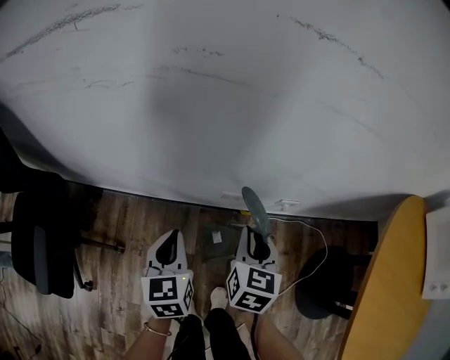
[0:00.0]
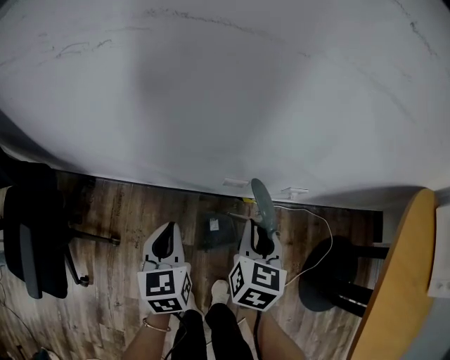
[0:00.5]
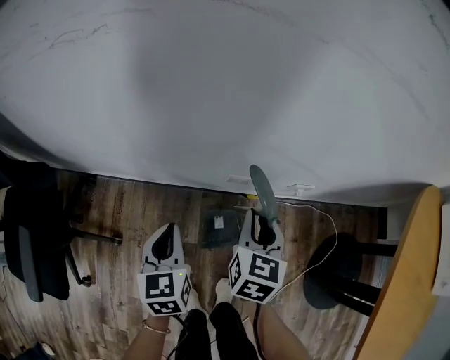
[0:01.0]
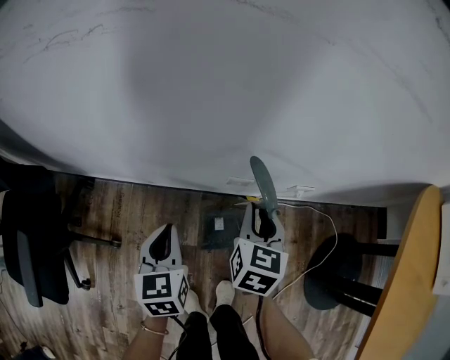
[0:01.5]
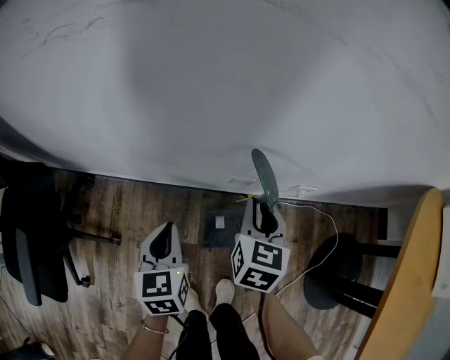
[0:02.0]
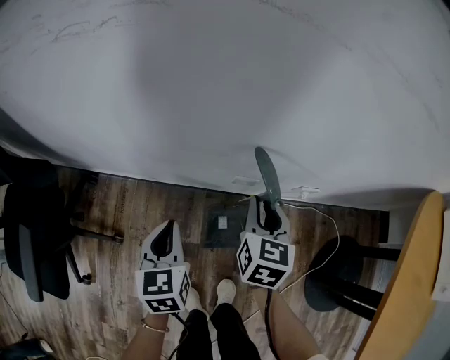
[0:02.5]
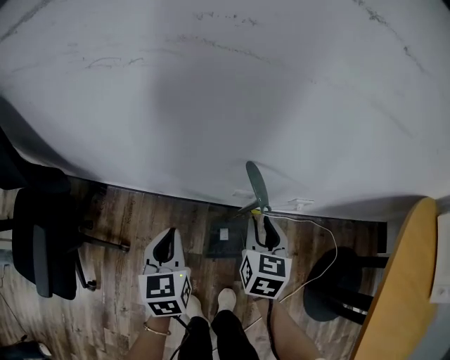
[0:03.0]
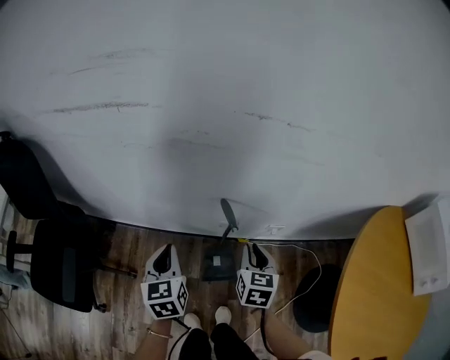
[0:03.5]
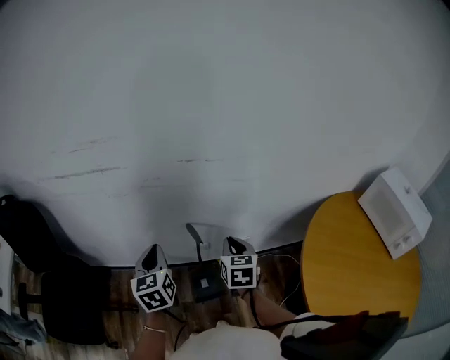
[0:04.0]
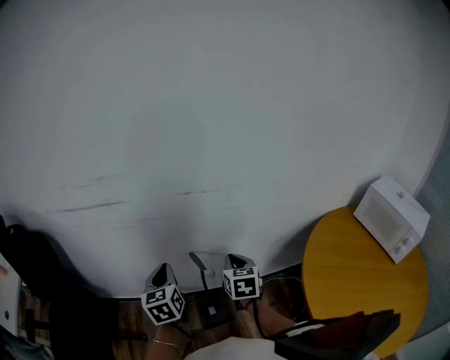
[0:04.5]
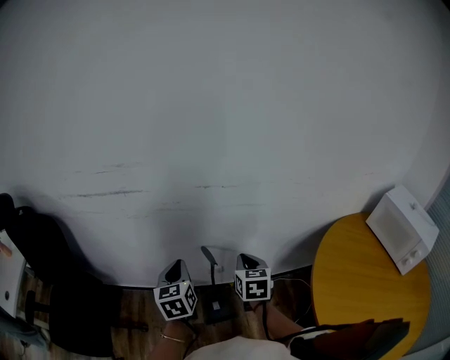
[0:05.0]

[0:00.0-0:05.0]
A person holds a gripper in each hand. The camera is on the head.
0:00.0 to 0:02.5: The left gripper goes approximately 10 cm downward. The right gripper is displaced downward and forward by some 10 cm.
0:02.5 to 0:05.0: The two grippers go about 35 cm upward.

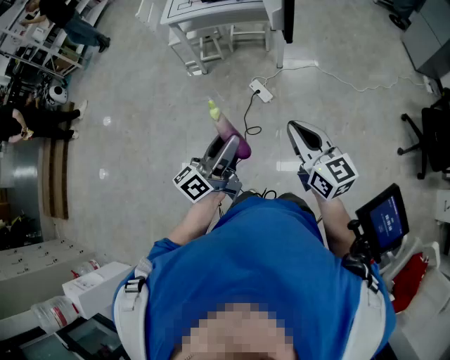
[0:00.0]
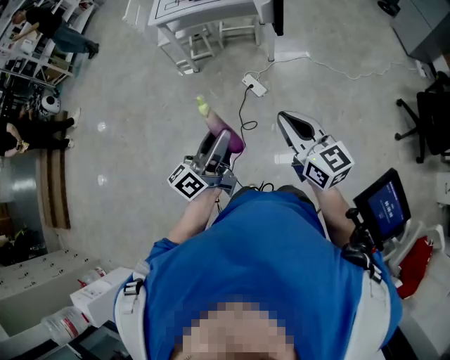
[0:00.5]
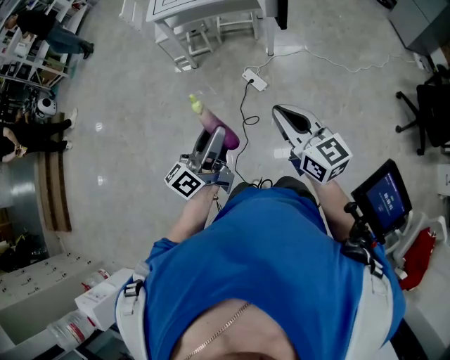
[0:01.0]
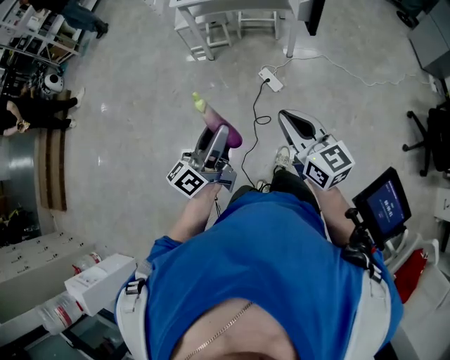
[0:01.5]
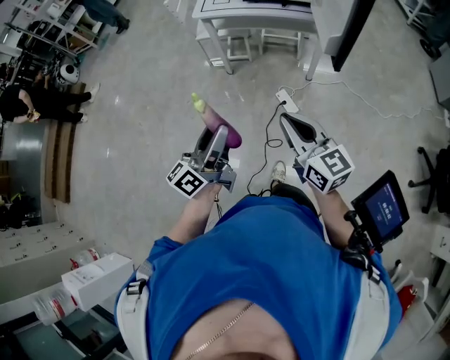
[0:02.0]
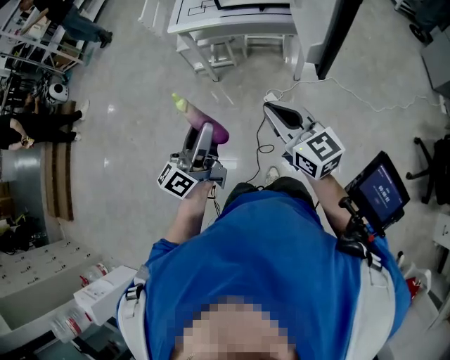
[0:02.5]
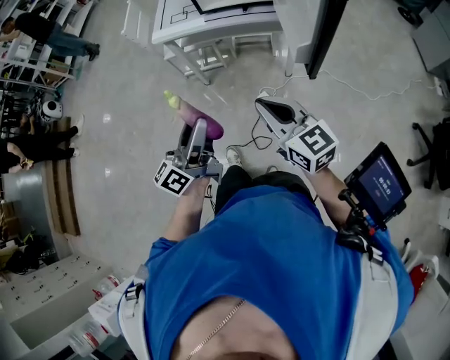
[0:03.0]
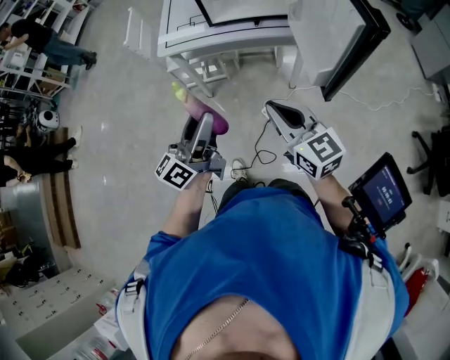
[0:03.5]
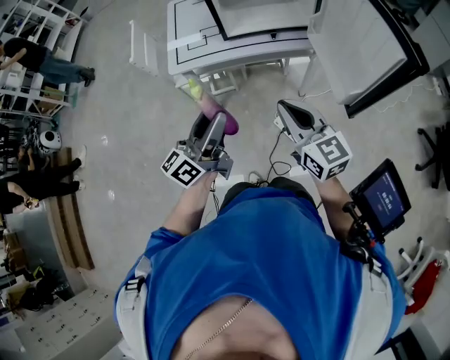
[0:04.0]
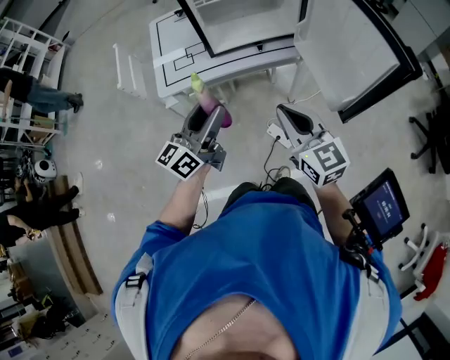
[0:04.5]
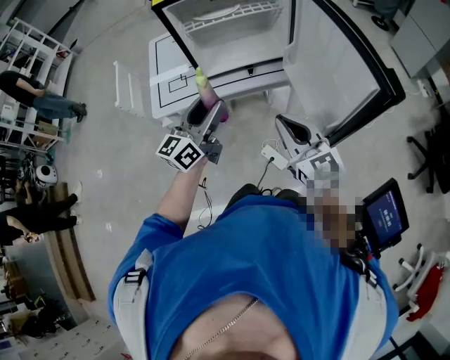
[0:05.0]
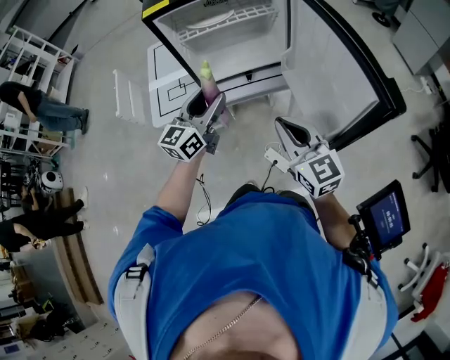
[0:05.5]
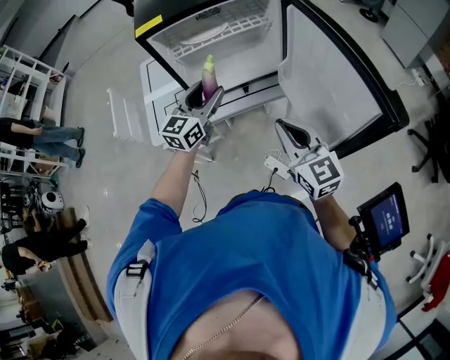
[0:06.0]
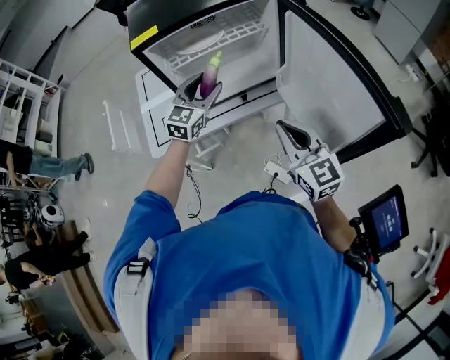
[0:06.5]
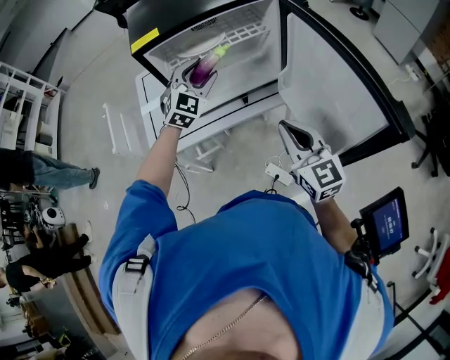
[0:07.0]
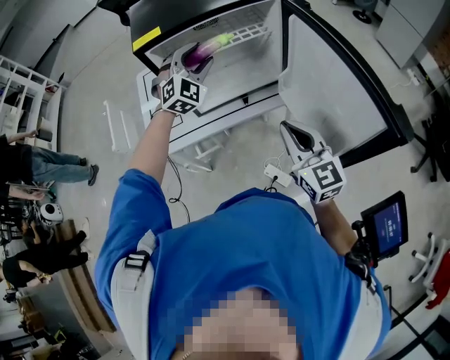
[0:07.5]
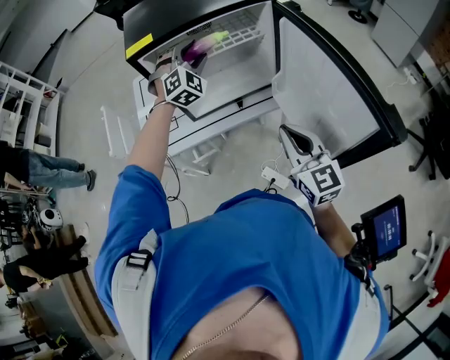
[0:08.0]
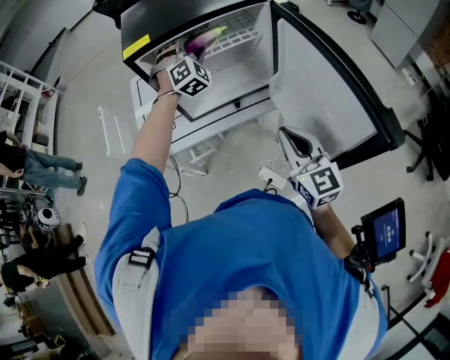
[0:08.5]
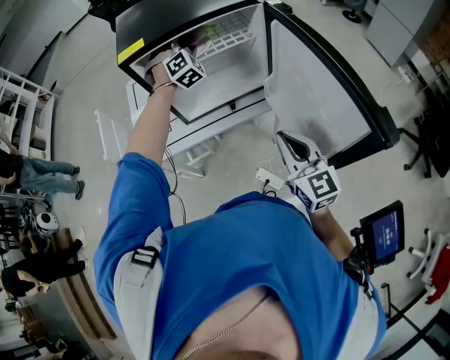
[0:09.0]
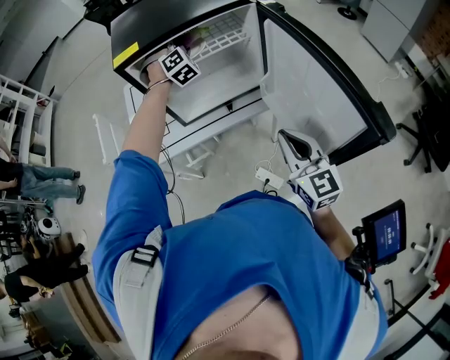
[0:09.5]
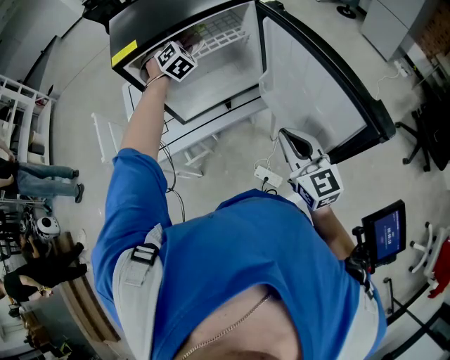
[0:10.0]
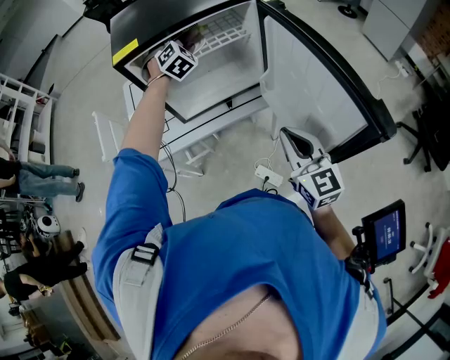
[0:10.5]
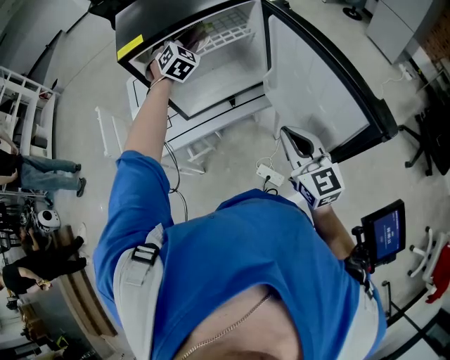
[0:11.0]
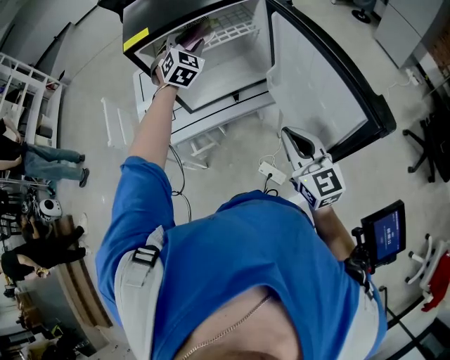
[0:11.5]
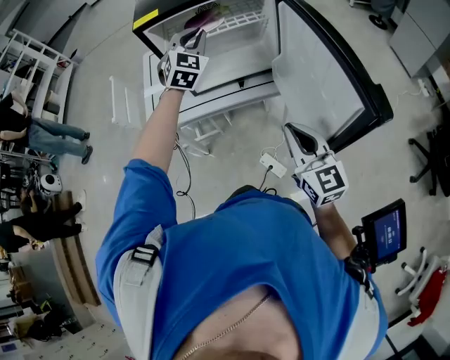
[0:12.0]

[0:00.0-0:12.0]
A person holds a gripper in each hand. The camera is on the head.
0:00.0 to 0:02.0: The grippers both shift forward and to the left by about 20 cm.
0:02.0 to 0:04.0: The grippers both shift forward by some 35 cm.
0:04.0 to 0:06.0: The left gripper shifts roughly 30 cm forward, and changes its angle by some 40 degrees. Meanwhile the right gripper heads forward and to the right, covering some 15 cm.
0:06.0 to 0:08.0: The left gripper heads forward, covering roughly 15 cm, and twists some 70 degrees clockwise, seen from behind.
0:08.0 to 0:10.0: The left gripper goes about 10 cm forward.
0:10.0 to 0:12.0: The left gripper is displaced backward by roughly 15 cm, swivels roughly 30 degrees, and closes its fingers; the right gripper goes some 5 cm backward.

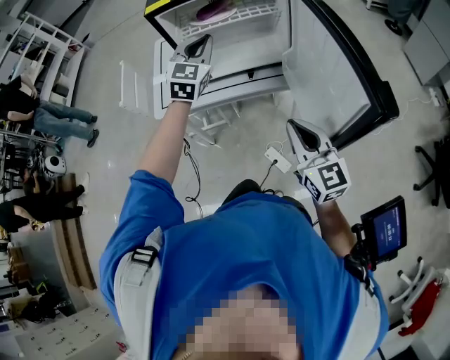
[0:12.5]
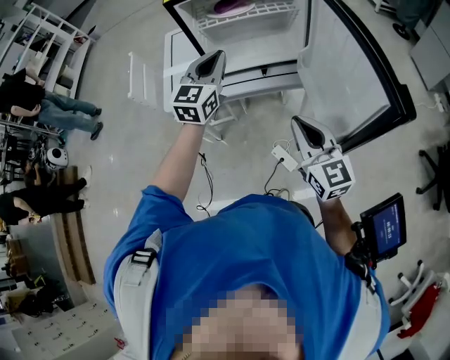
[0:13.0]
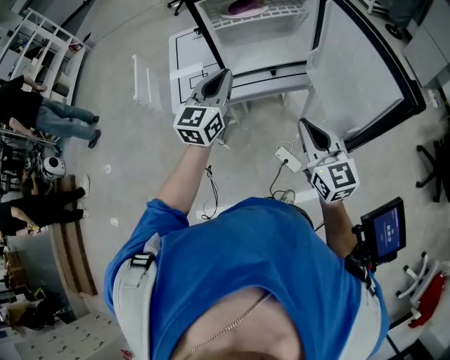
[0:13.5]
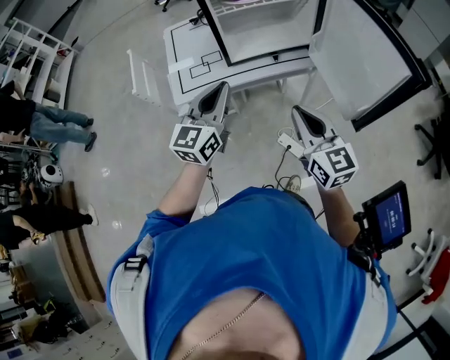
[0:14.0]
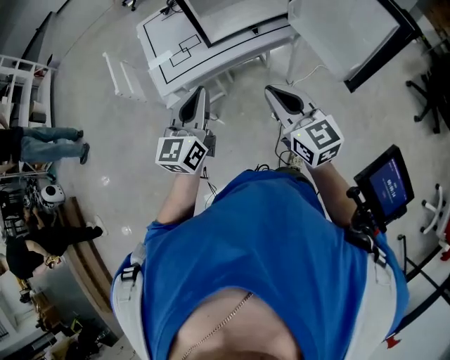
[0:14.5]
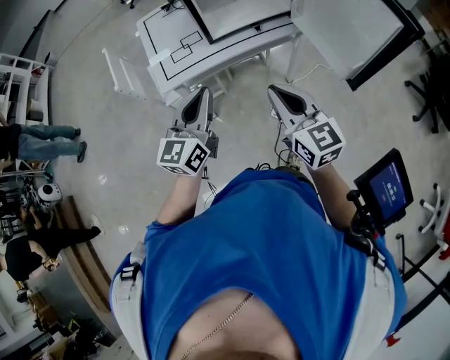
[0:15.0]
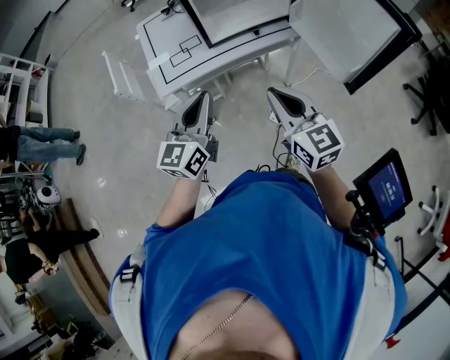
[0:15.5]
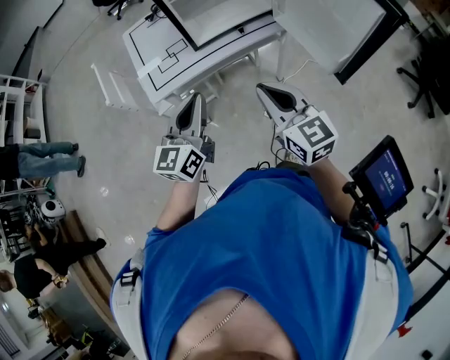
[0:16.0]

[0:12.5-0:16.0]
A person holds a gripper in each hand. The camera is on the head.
0:12.5 to 0:14.5: The right gripper travels to the left by approximately 20 cm. Meanwhile the left gripper heads backward and to the left, covering some 30 cm, and rotates roughly 40 degrees.
0:14.5 to 0:16.0: The grippers move only a little.

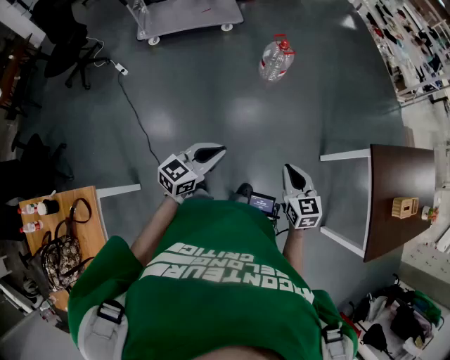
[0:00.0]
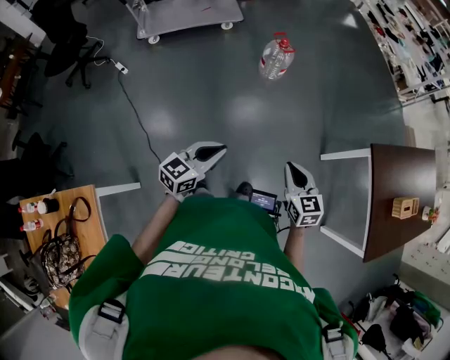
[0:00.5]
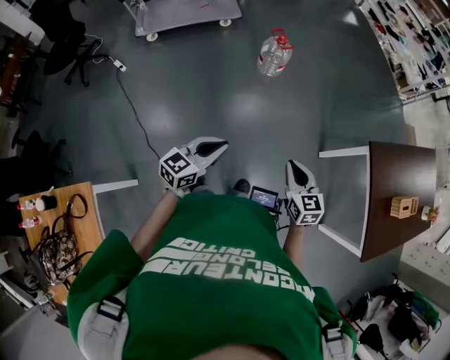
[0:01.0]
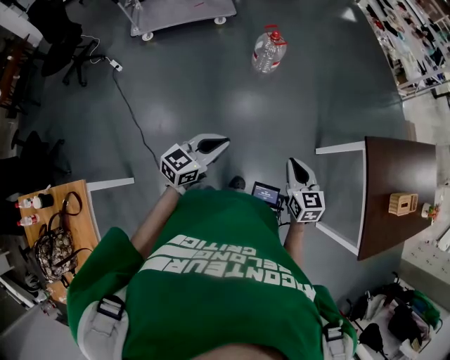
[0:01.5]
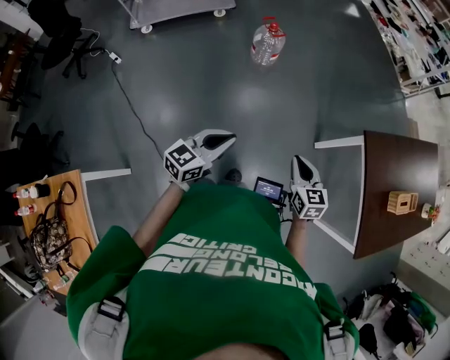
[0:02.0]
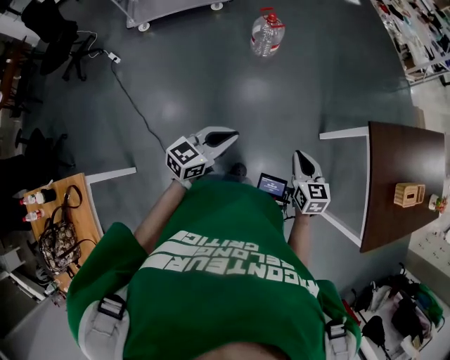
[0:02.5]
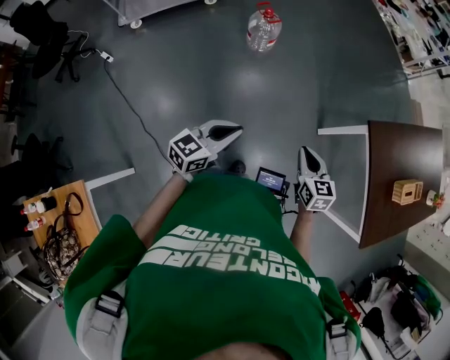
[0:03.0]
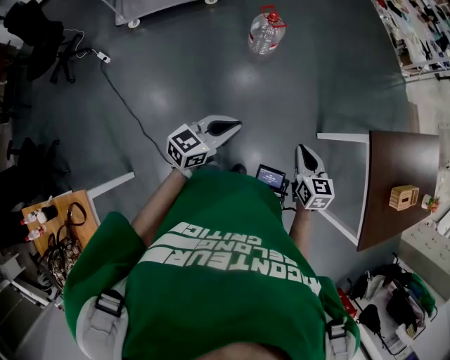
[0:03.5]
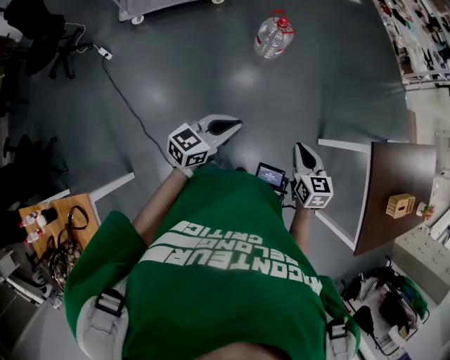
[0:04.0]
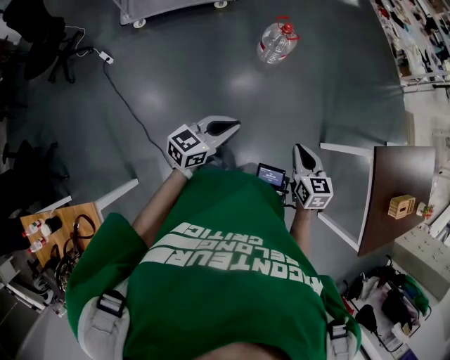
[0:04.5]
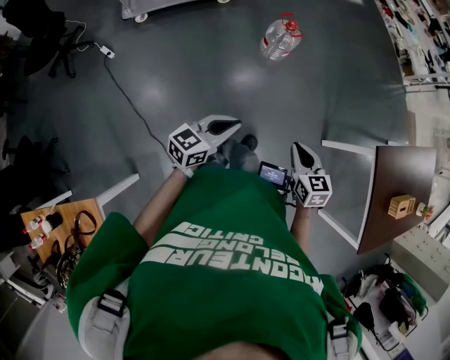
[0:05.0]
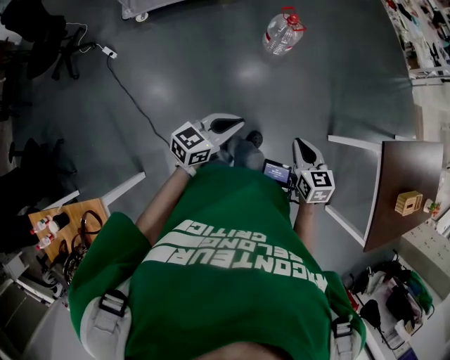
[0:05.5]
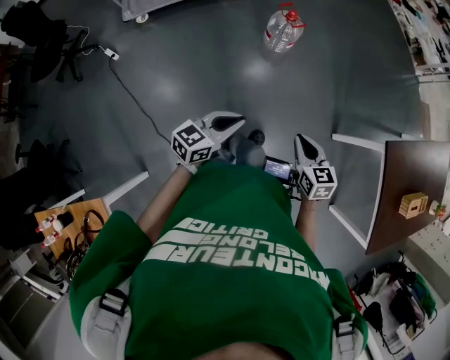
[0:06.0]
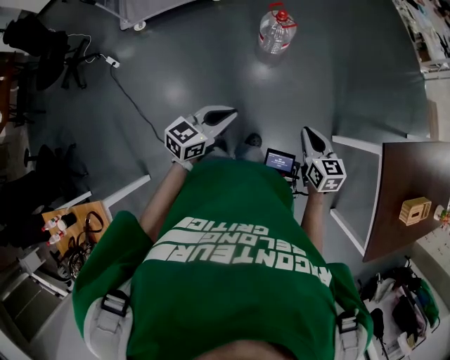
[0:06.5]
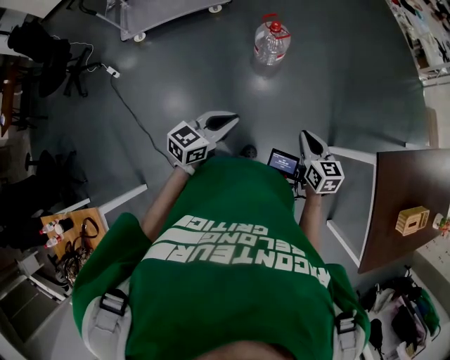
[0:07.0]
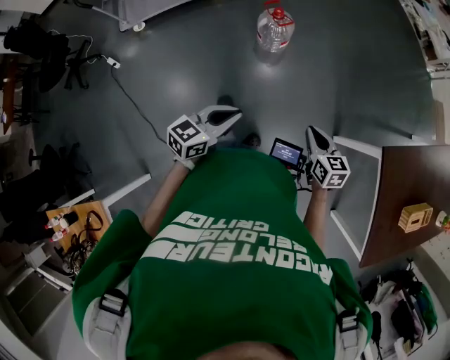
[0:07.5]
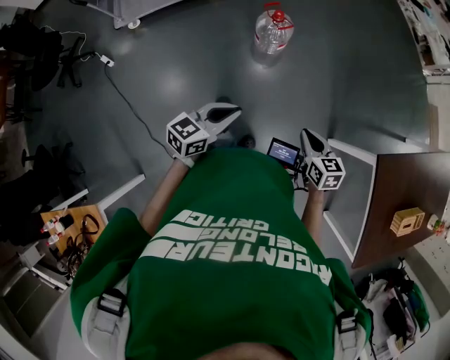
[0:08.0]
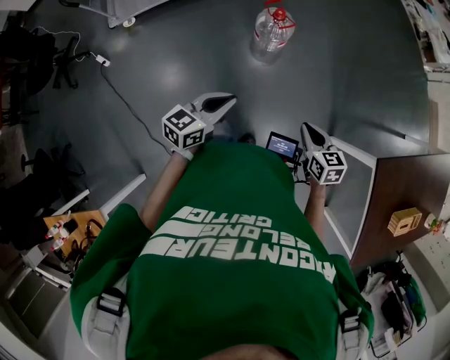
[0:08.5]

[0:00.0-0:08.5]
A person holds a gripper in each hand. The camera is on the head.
0:00.0 to 0:02.0: The two grippers go roughly 15 cm to the right.
0:02.0 to 0:04.0: Both grippers travel together to the left and forward, about 20 cm.
0:04.0 to 0:06.5: The grippers both shift forward by approximately 10 cm.
0:06.5 to 0:08.5: Both grippers travel together forward, some 15 cm.
